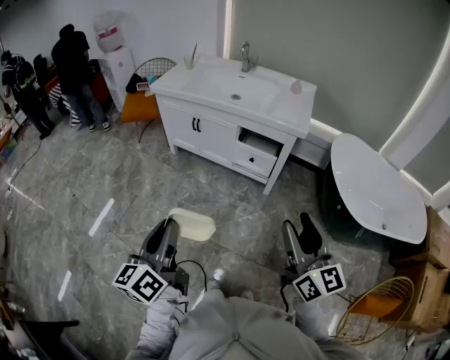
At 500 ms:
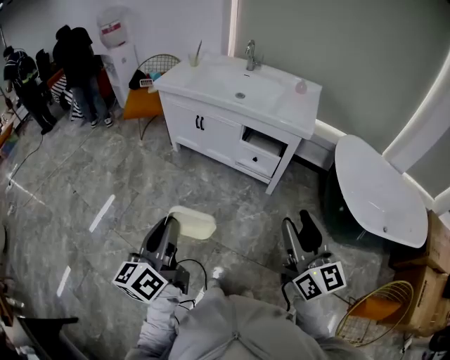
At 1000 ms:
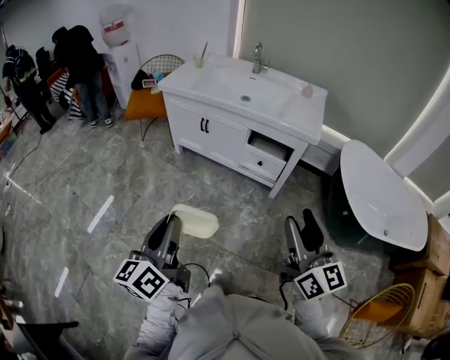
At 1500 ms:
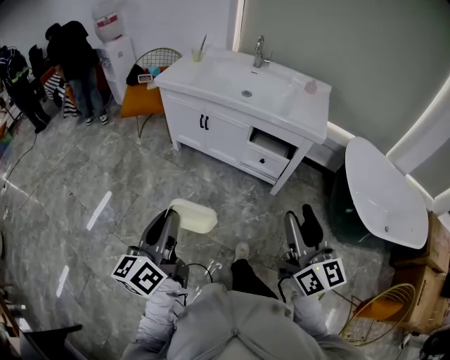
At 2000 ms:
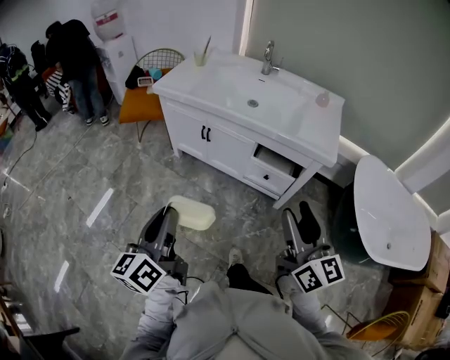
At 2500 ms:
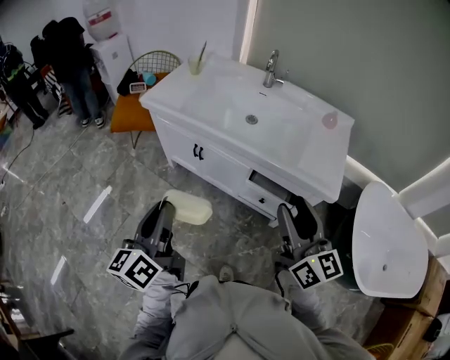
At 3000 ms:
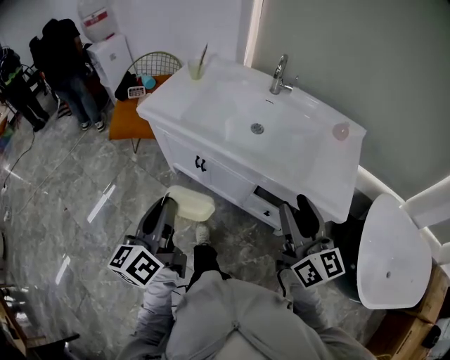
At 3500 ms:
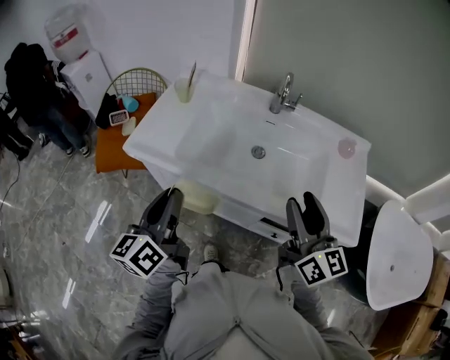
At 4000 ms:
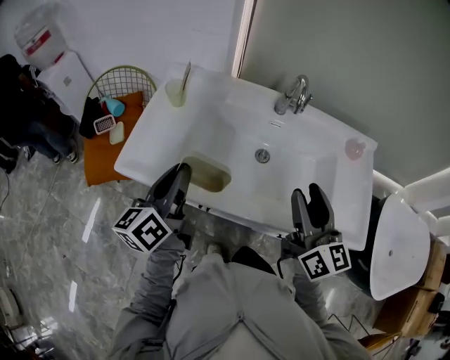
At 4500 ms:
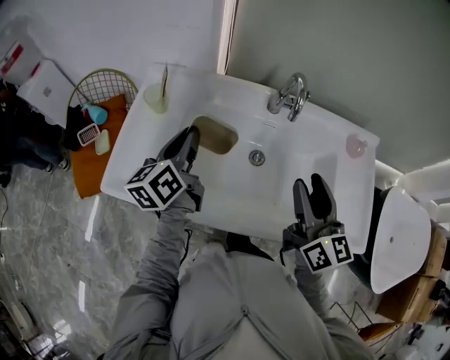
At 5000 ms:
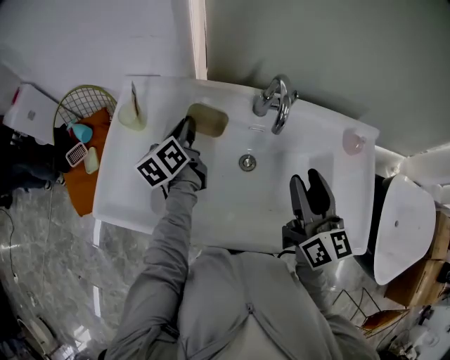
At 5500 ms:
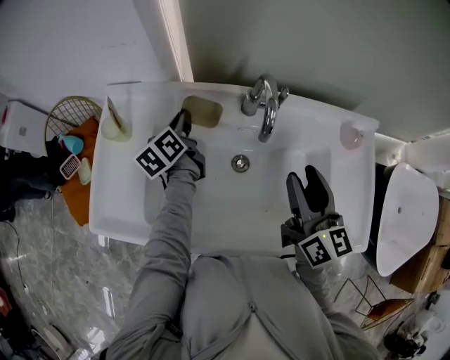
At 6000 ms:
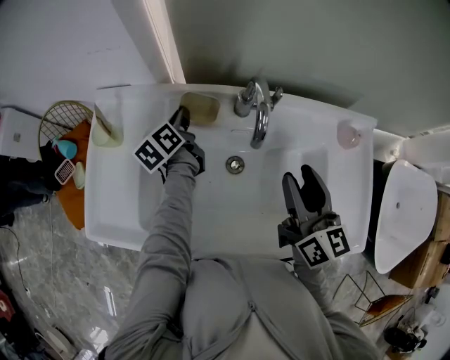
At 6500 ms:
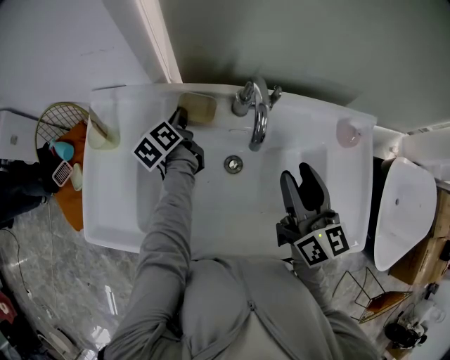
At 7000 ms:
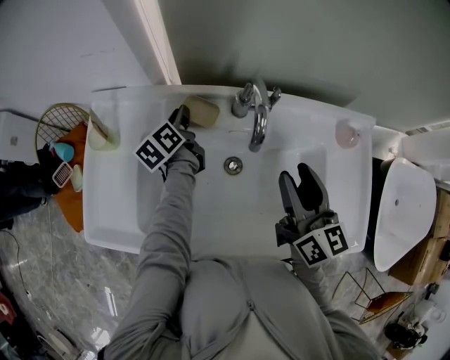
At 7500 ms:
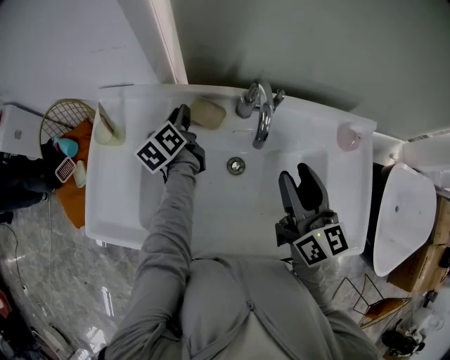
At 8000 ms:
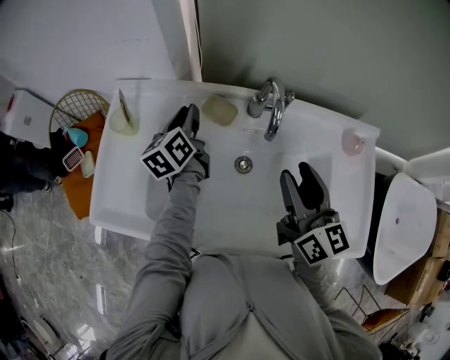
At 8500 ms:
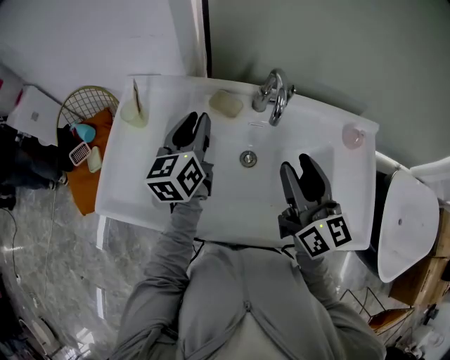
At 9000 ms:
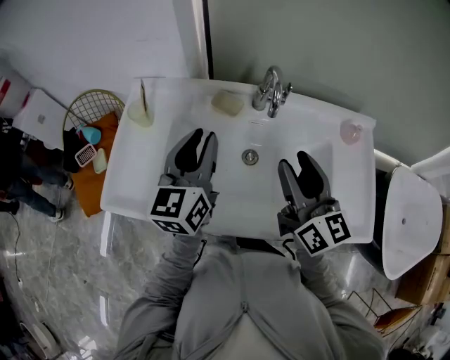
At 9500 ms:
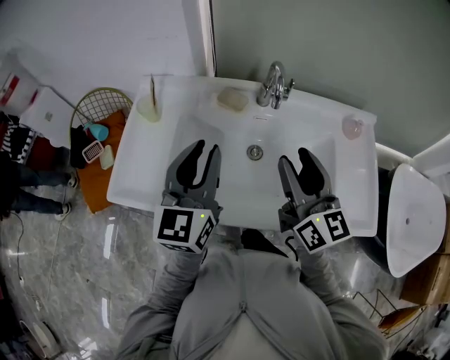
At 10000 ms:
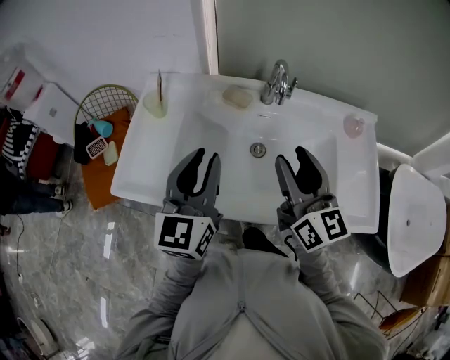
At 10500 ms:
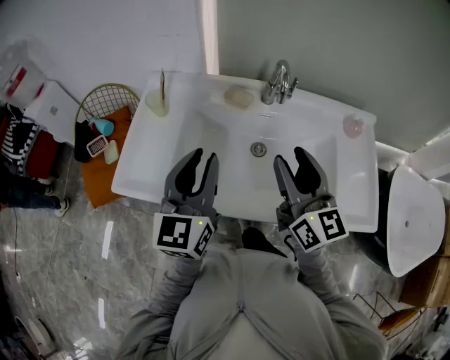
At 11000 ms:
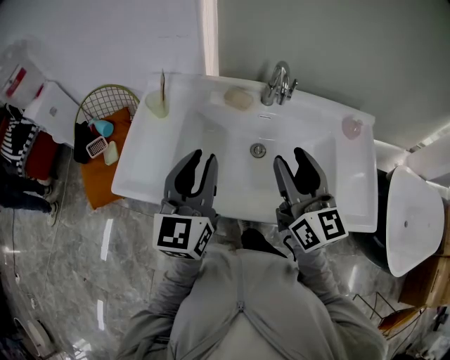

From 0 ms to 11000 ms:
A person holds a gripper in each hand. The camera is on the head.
From 0 ms to 2000 ms: Both grippers move forward, roughly 25 cm.
From 2000 ms to 3500 ms: The two grippers travel together, forward, about 40 cm.
From 3500 ms to 5500 ms: The right gripper heads forward, covering about 25 cm, while the left gripper shifts some 50 cm forward, and swivels some 20 degrees.
From 5500 ms to 7500 ms: The grippers make only small movements.
From 7500 ms to 9000 ms: The left gripper goes approximately 25 cm backward and upward, and swivels roughly 40 degrees; the right gripper heads backward and to the left, covering about 10 cm.
From 9000 ms to 11000 ms: The right gripper shifts some 5 cm backward, while the left gripper shifts some 10 cm backward.

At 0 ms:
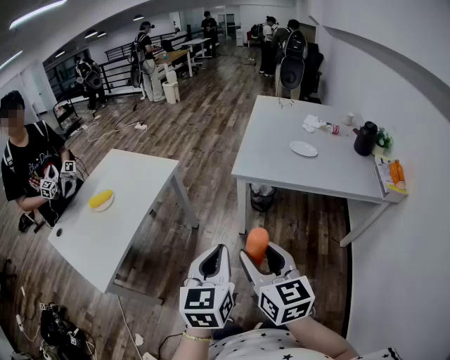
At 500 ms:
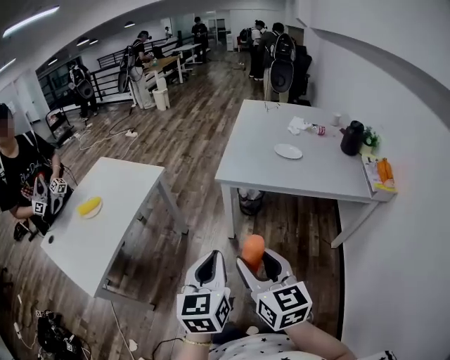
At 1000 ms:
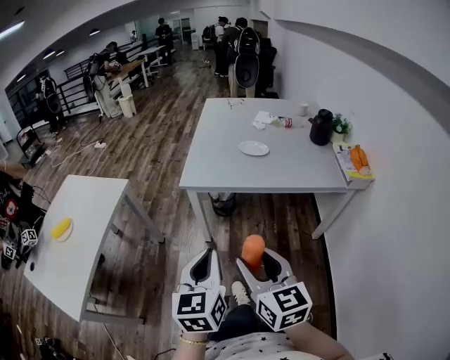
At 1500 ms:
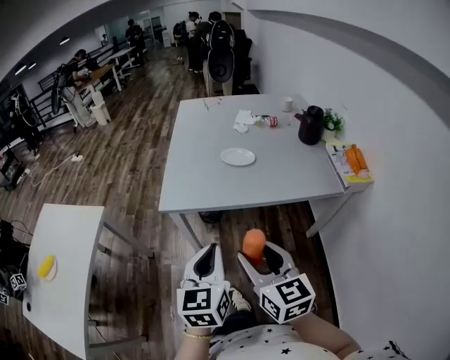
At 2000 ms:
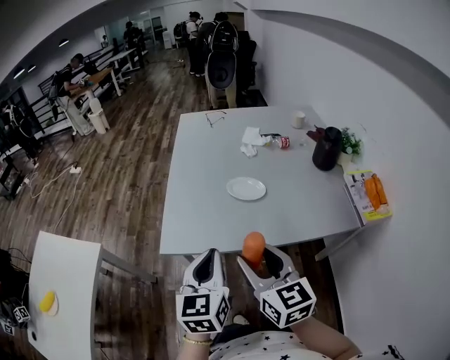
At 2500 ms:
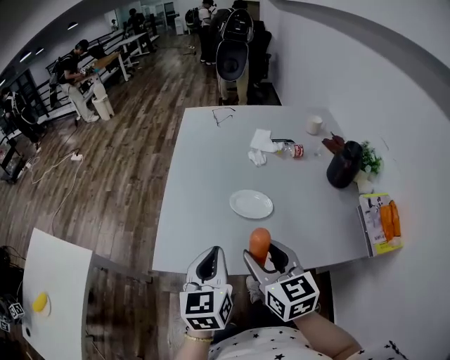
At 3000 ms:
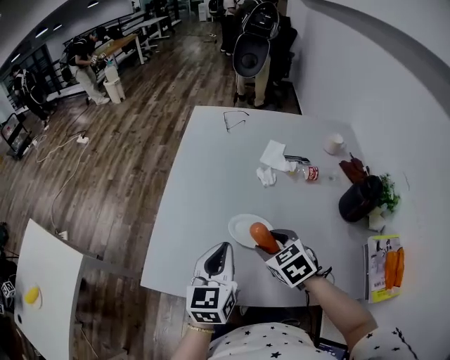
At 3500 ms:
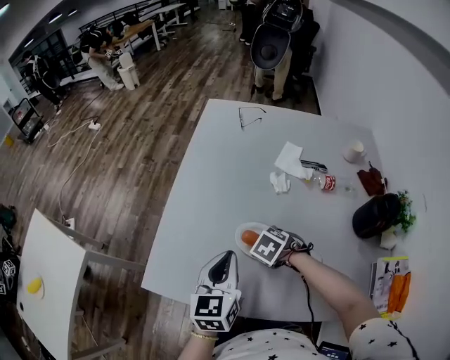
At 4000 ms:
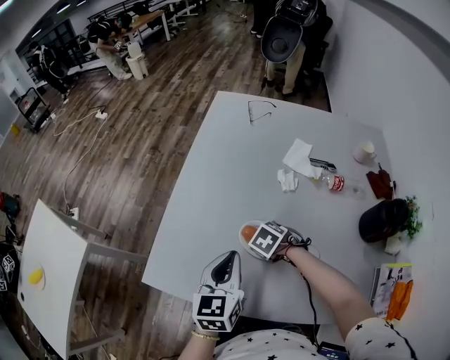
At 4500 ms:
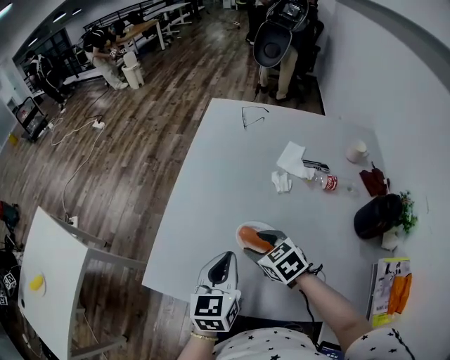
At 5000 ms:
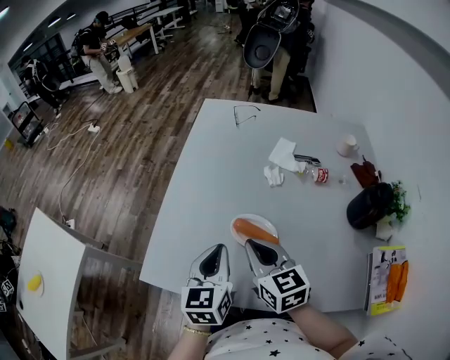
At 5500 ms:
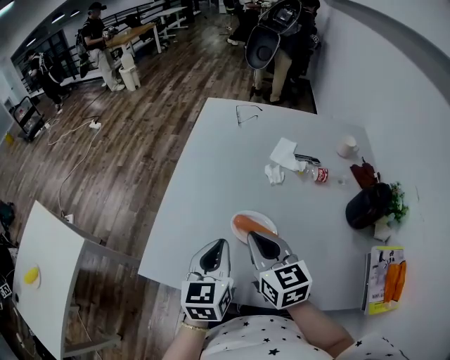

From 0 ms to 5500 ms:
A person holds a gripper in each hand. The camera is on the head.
From 0 ms to 2000 ms: The two grippers travel together, forward and to the right, roughly 40 cm.
From 2000 ms to 3500 ms: The left gripper ends up roughly 30 cm from where it was. The right gripper shifts by roughly 40 cm, and tilts its fingers some 70 degrees downward.
From 3500 ms to 5500 ms: The right gripper goes roughly 20 cm upward, tips its fingers upward by roughly 60 degrees, and closes its fingers.

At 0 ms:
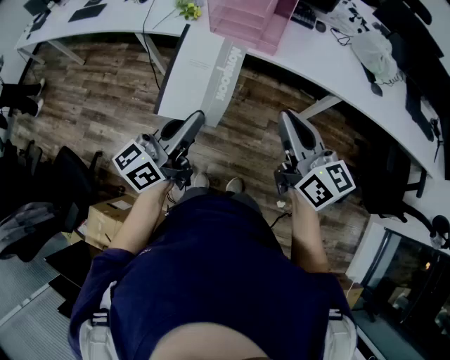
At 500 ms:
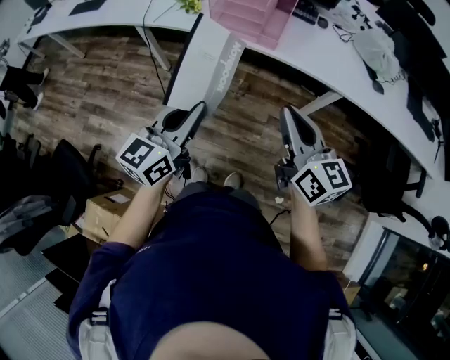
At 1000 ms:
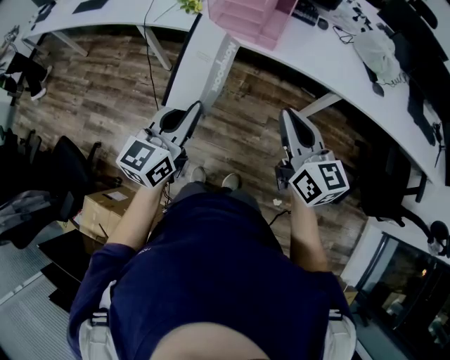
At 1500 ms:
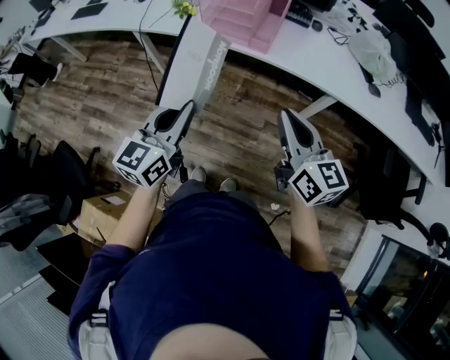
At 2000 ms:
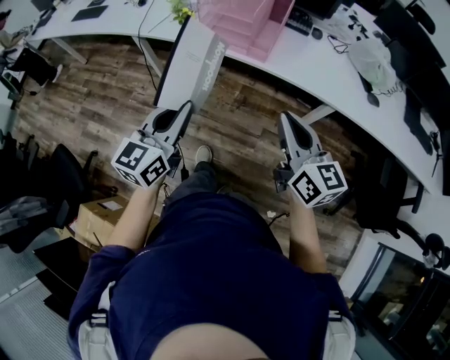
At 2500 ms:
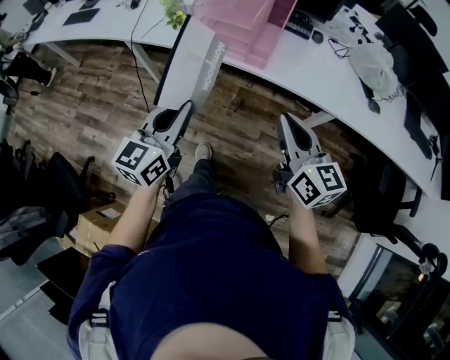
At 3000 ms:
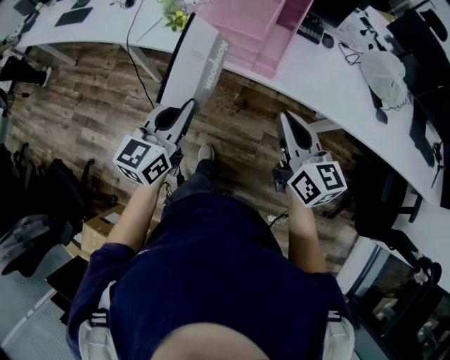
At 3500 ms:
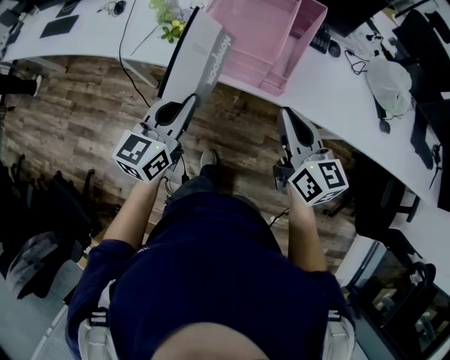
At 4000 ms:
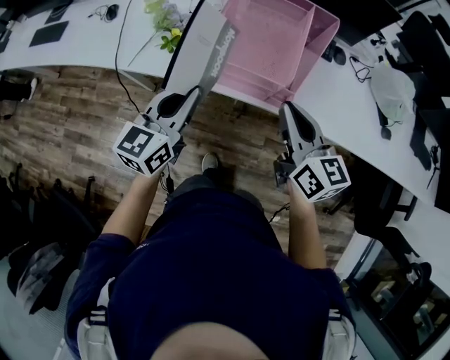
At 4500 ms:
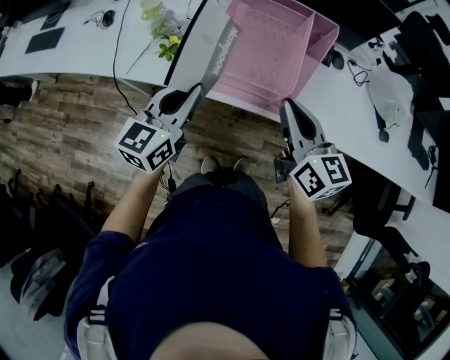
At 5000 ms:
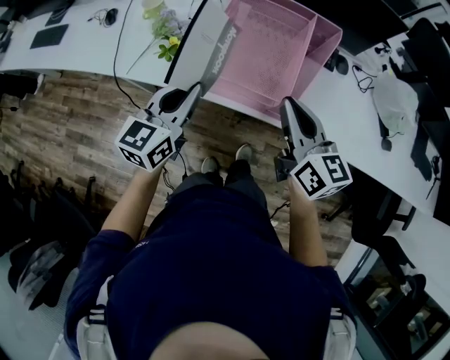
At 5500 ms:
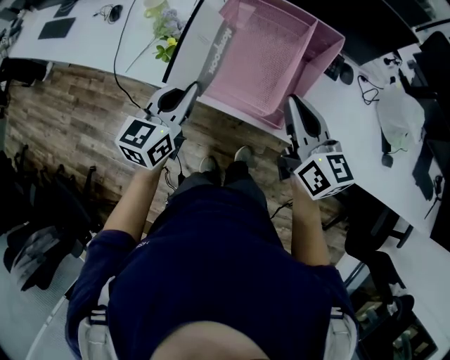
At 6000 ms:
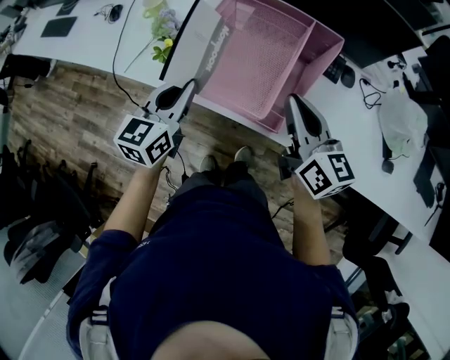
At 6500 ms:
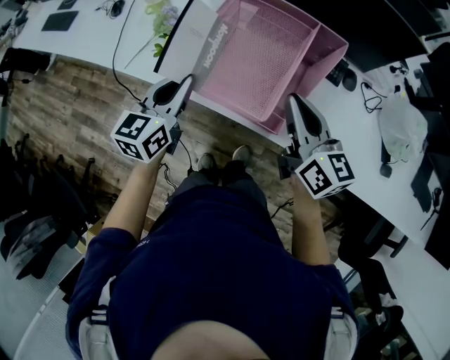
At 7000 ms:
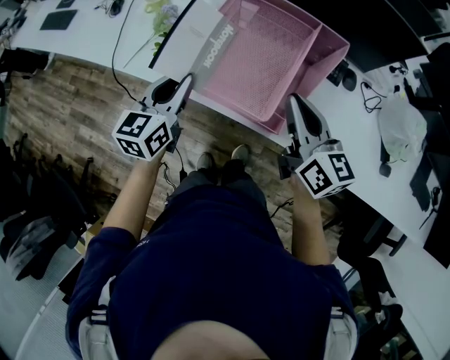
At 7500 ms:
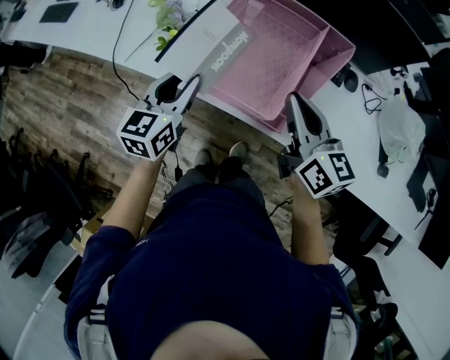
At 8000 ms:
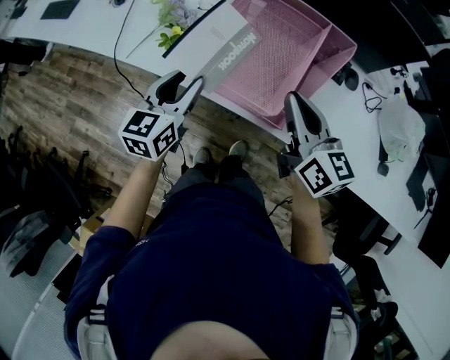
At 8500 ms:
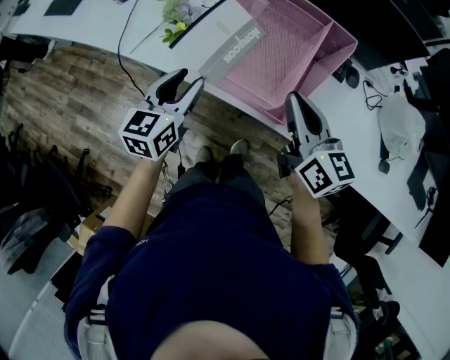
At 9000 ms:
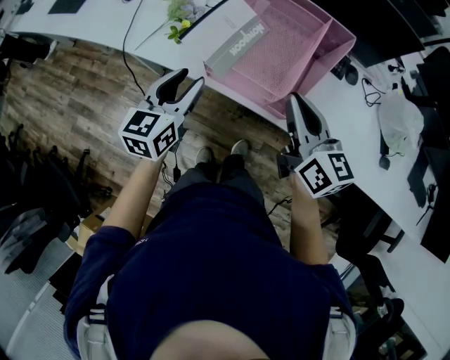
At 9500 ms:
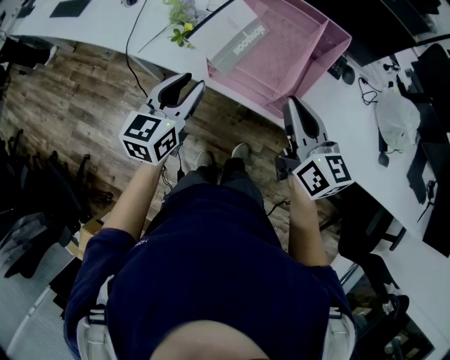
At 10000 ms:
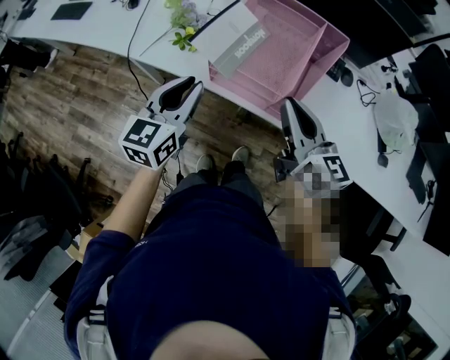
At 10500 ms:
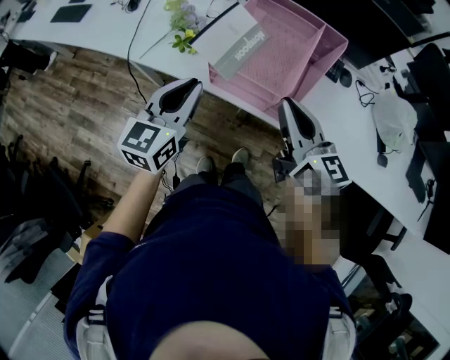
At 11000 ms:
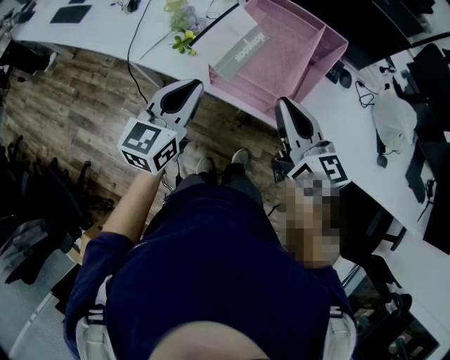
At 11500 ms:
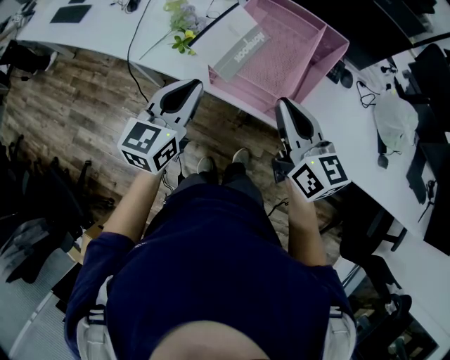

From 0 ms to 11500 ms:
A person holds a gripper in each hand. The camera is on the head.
From 0 ms to 2000 ms: The right gripper travels to the right by roughly 5 cm. Meanwhile the left gripper is displaced forward by about 5 cm, and rotates approximately 30 degrees.
From 2000 ms to 4000 ms: Both grippers travel together forward, some 35 cm.
From 4000 ms to 6000 ms: The right gripper is displaced forward and to the right by some 15 cm. The left gripper travels forward by about 10 cm.
From 6000 ms to 7500 ms: The left gripper opens its fingers.
From 7500 ms to 9500 ms: Both grippers move backward, approximately 10 cm.
From 9500 ms to 11500 ms: The left gripper closes up.
